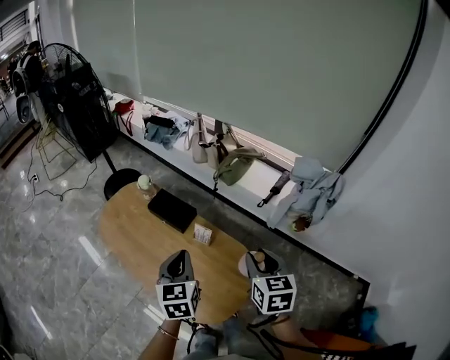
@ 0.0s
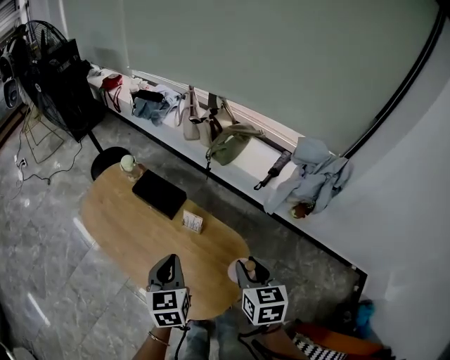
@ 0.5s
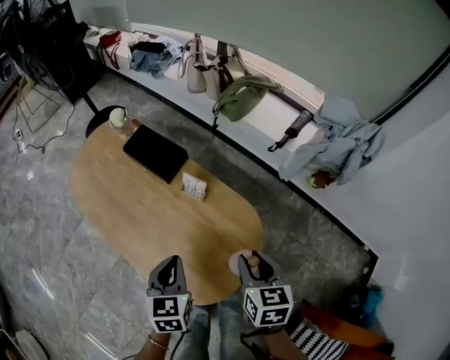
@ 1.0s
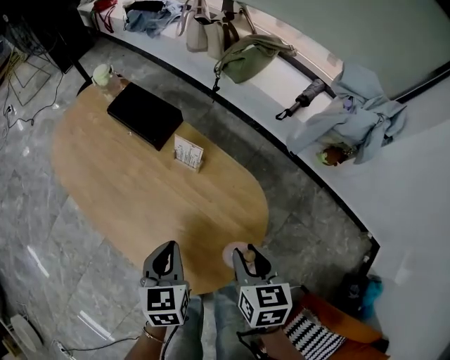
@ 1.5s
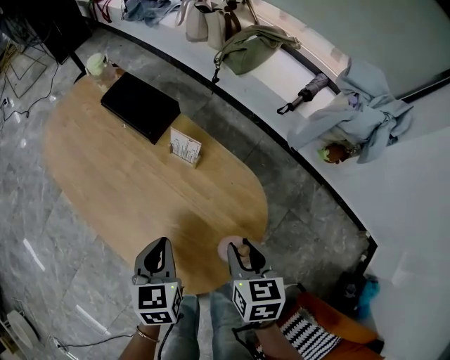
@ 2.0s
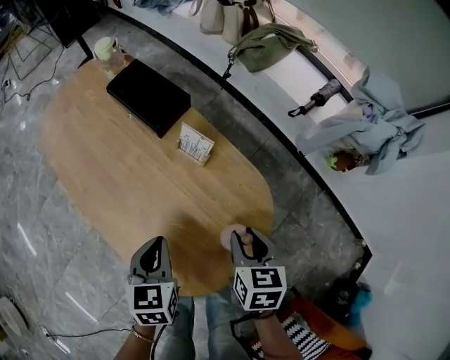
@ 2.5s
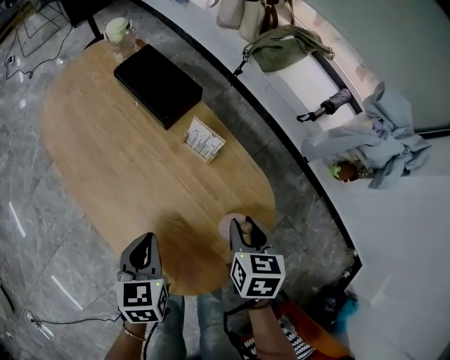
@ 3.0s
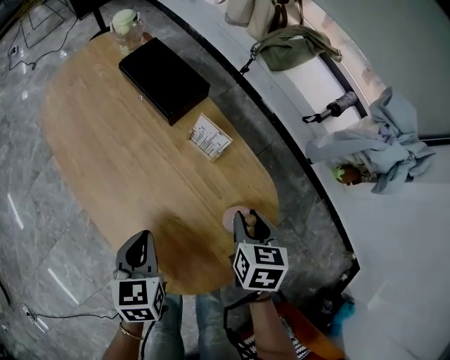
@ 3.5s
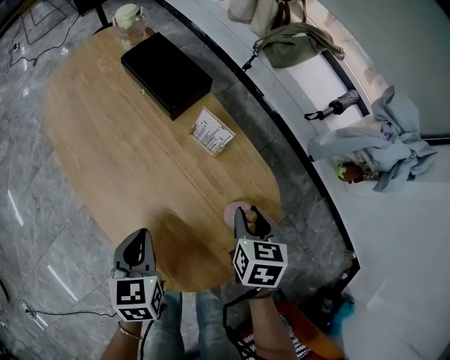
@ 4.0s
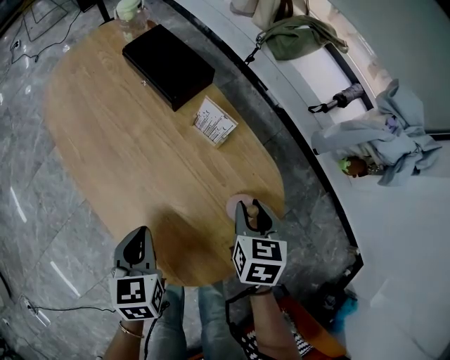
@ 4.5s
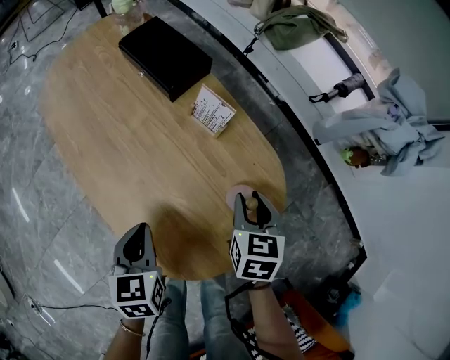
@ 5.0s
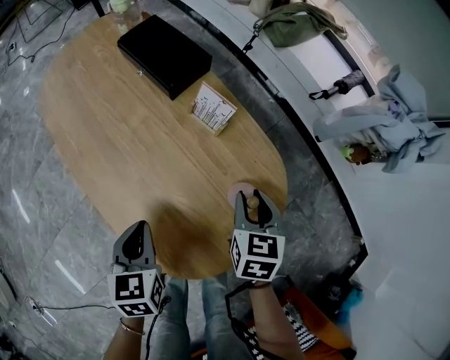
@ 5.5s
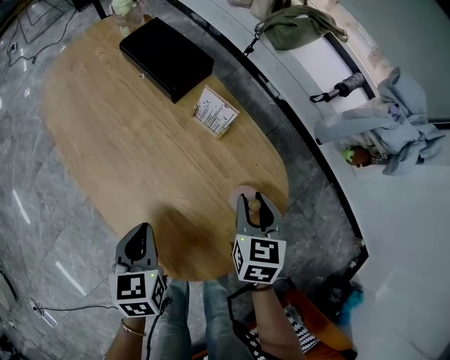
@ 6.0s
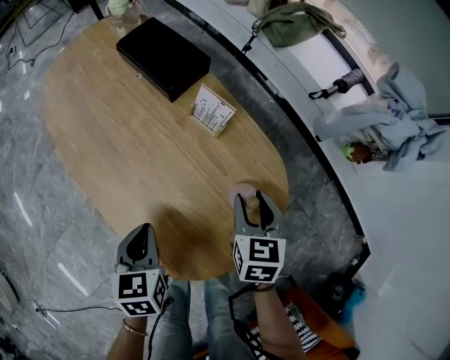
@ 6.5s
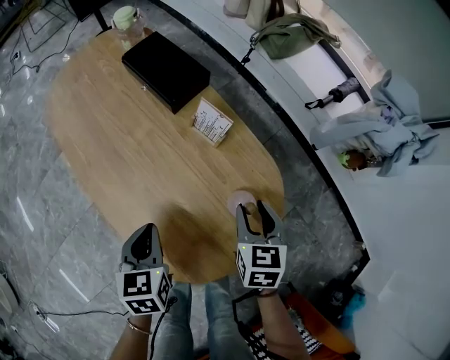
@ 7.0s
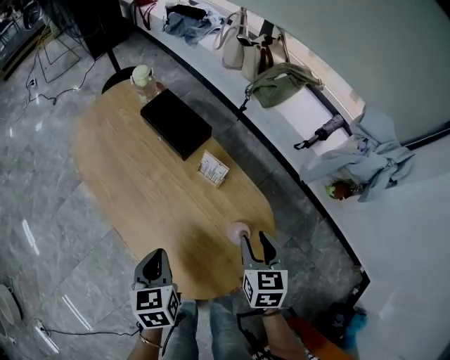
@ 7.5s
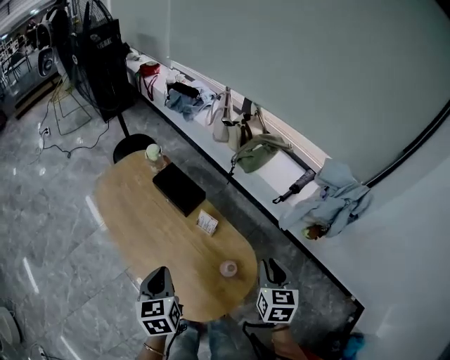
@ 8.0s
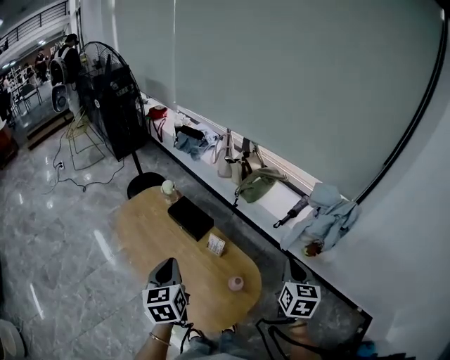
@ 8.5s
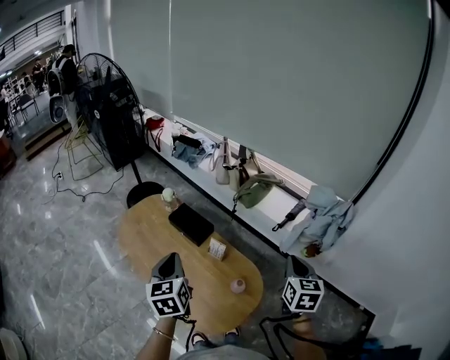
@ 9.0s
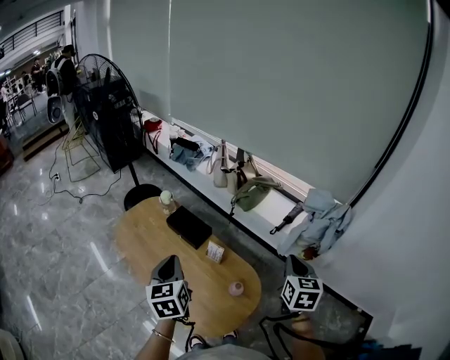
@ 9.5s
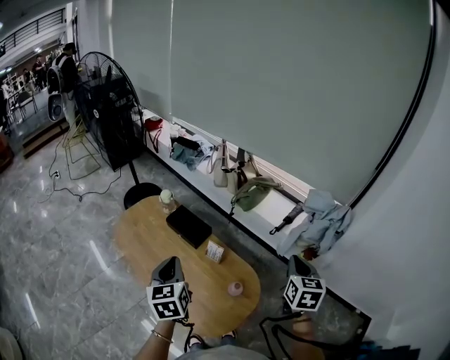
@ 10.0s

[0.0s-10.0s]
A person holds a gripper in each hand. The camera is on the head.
0.0s to 2.0s: Both grippers move downward, roughly 35 cm.
2.0s to 4.0s: The left gripper moves to the left, about 5 cm. The right gripper travels forward and downward by roughly 10 cm.
4.0s to 6.0s: The grippers stay close to where they were, moving slightly.
6.0s to 8.0s: Both grippers move upward, some 25 cm.
8.0s to 10.0s: The grippers both shift upward by roughly 15 cm.

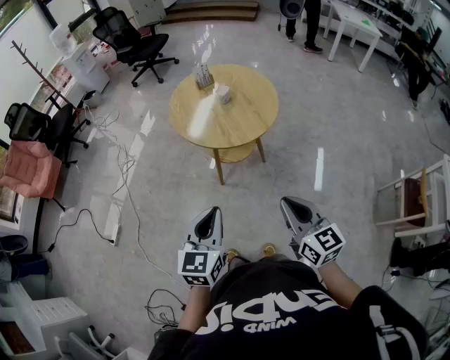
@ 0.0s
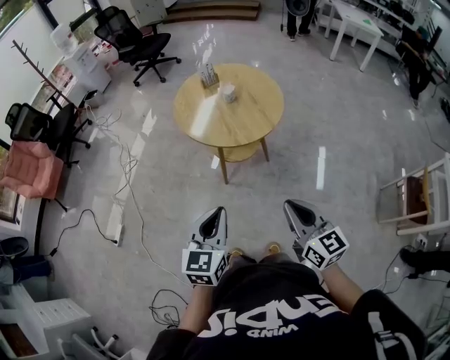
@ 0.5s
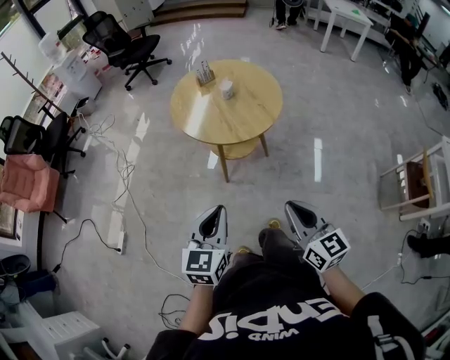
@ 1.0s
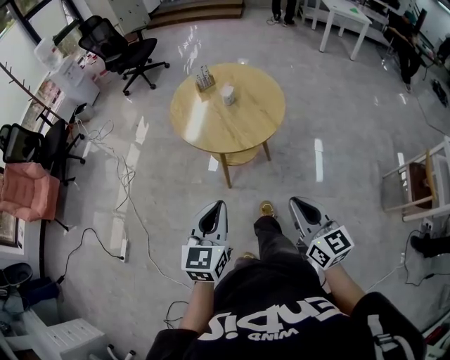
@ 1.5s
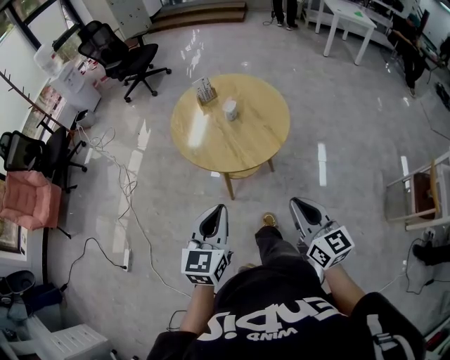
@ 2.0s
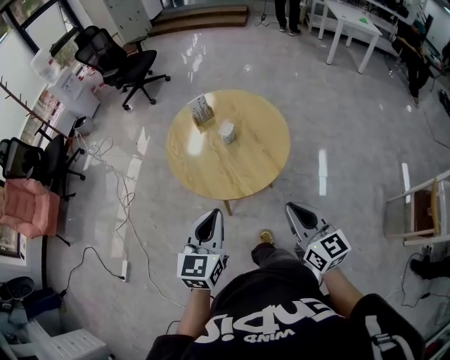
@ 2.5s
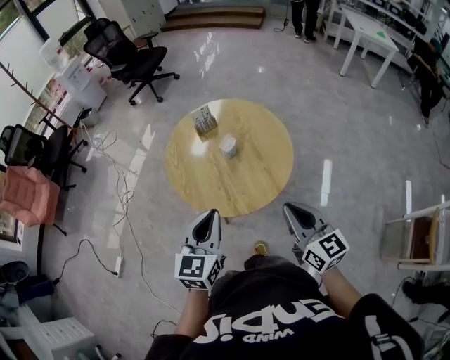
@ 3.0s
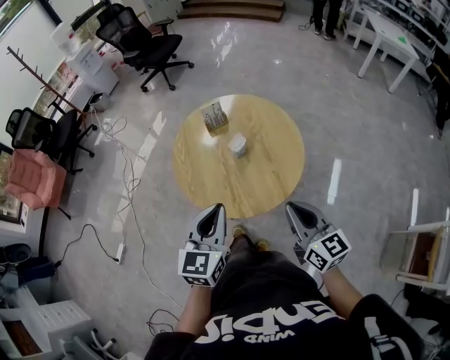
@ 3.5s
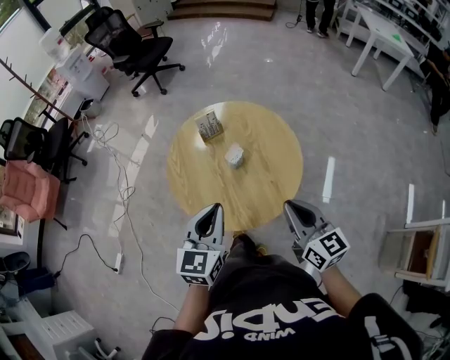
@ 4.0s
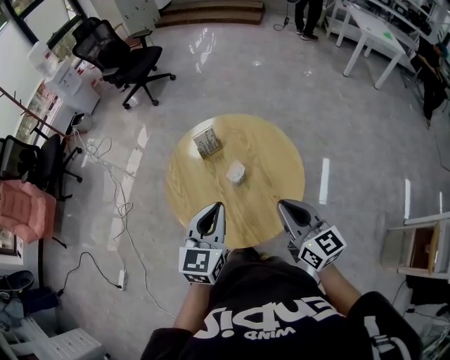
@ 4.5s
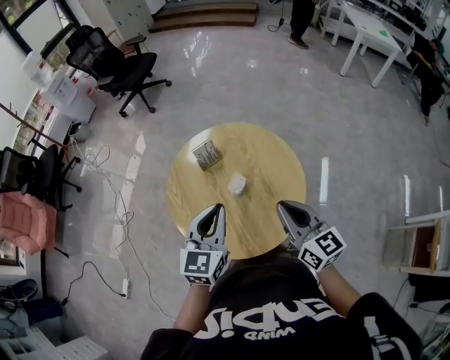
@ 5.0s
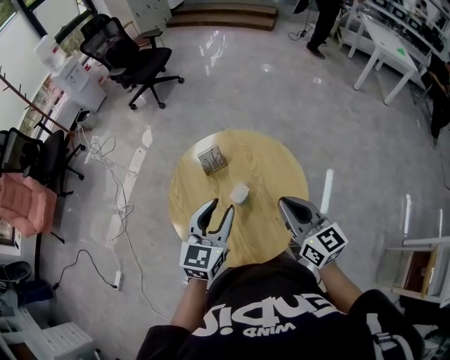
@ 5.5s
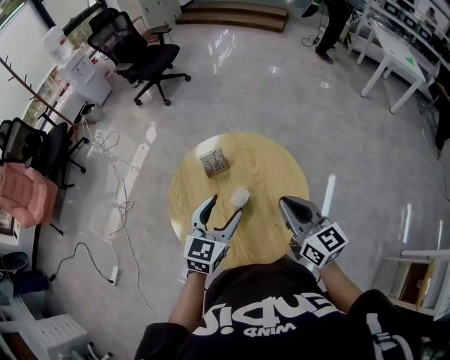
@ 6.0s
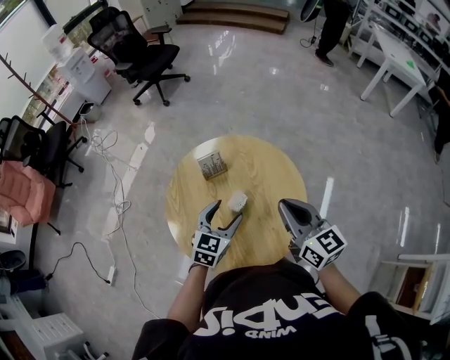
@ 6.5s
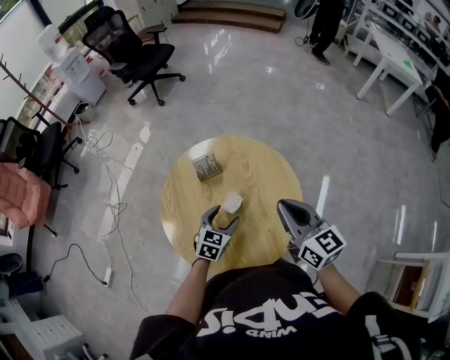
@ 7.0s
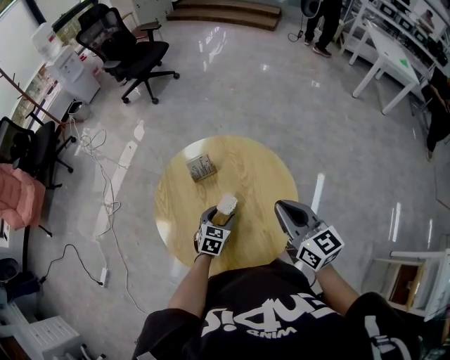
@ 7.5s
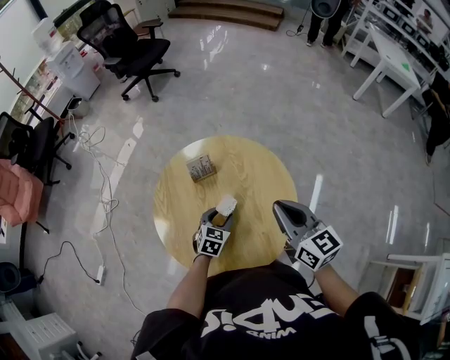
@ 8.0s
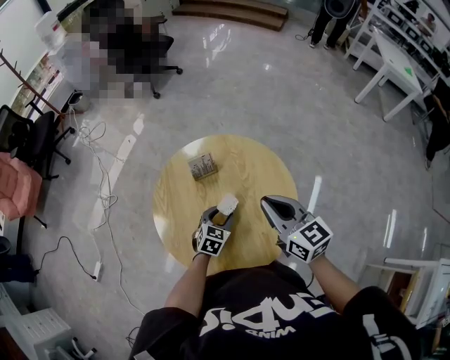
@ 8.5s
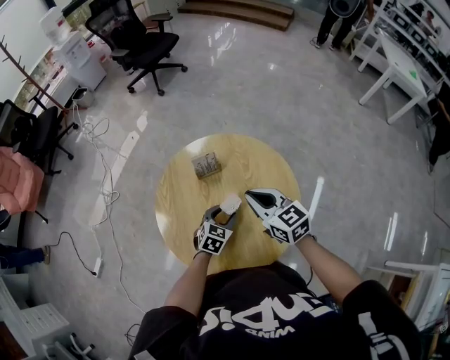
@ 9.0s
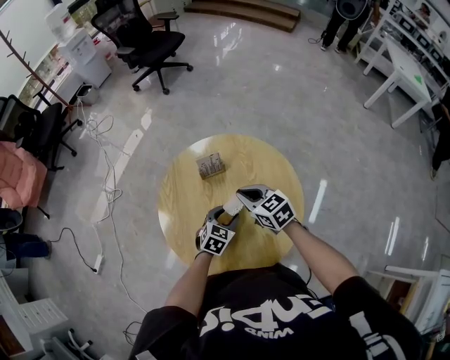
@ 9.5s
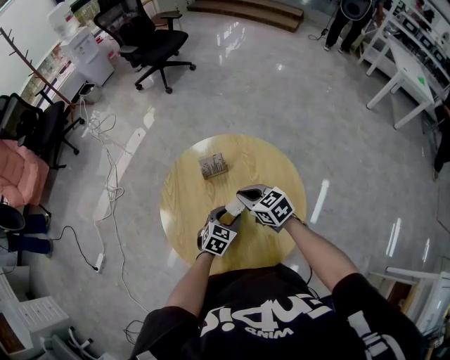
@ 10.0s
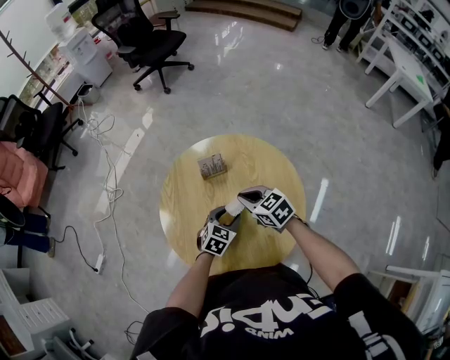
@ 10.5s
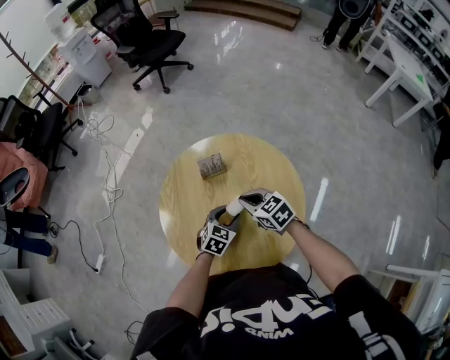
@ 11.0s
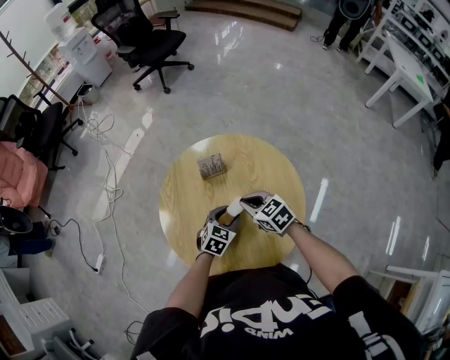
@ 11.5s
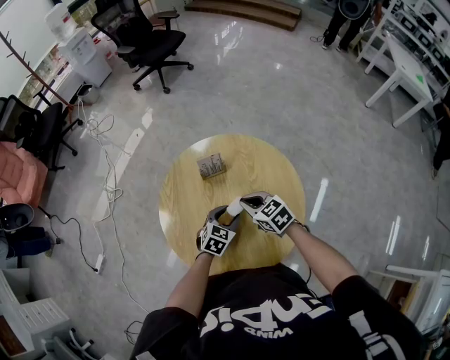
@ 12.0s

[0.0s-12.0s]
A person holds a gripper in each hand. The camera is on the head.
0.0s to 2.0s: Both grippers travel together forward, approximately 15 cm.
2.0s to 4.0s: Both grippers move forward, some 30 cm.
4.0s to 6.0s: The two grippers go roughly 20 cm forward. The left gripper opens its fingers.
6.0s to 8.0s: The left gripper travels downward by about 25 cm, and changes its angle by roughly 20 degrees.
8.0s to 10.0s: The right gripper goes about 20 cm downward, to the left and forward, and turns by about 40 degrees.
10.0s to 12.0s: There are only small adjustments of the grippers.

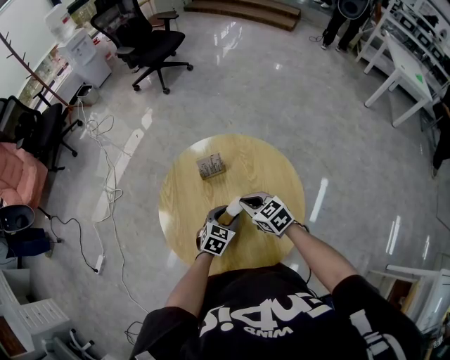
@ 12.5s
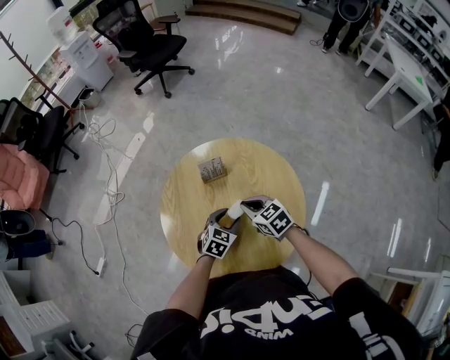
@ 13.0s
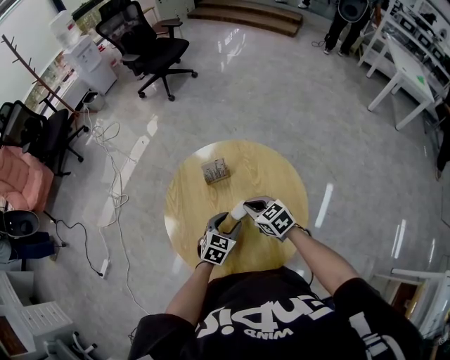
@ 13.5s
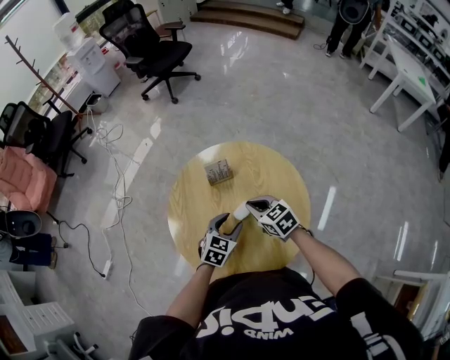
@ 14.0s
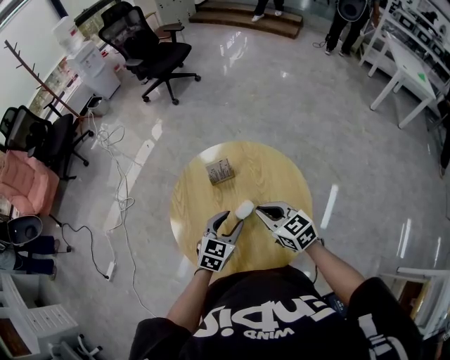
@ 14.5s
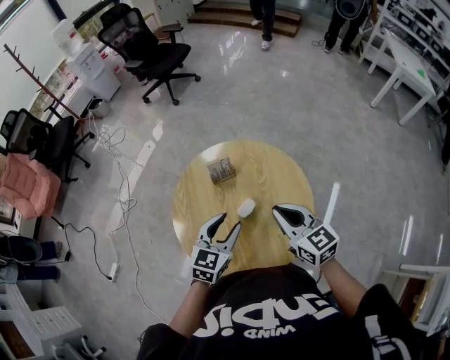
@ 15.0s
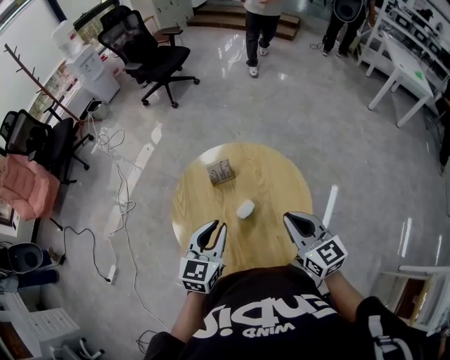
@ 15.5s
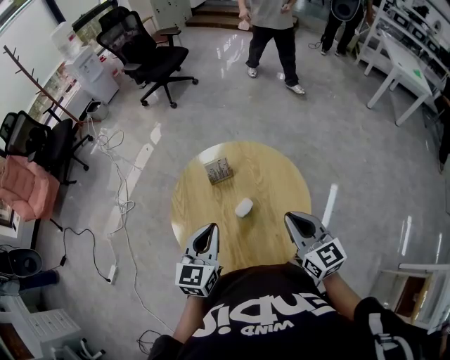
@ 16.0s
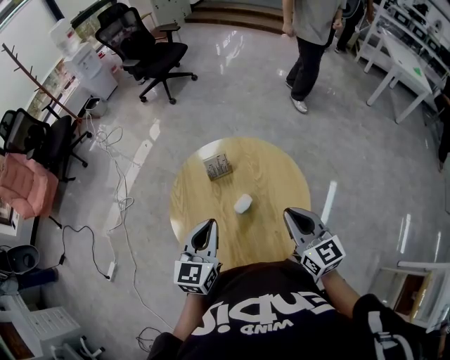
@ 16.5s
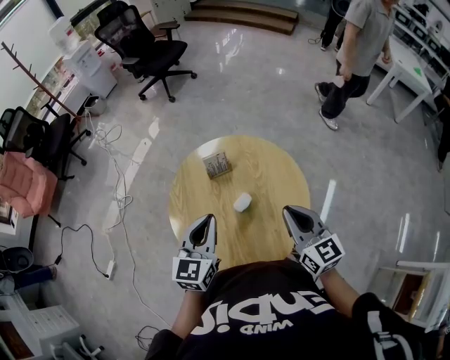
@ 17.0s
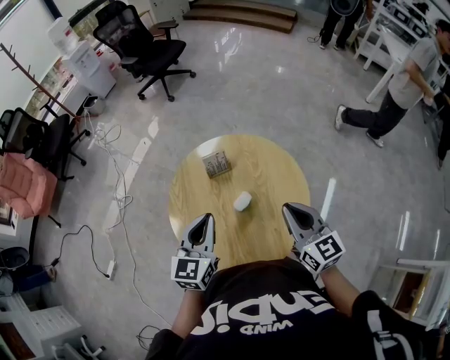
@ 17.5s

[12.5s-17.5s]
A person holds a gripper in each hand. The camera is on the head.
12.5s to 15.0s: The grippers both shift upward by some 15 cm. The right gripper turns by approximately 30 degrees.
15.0s to 17.5s: The right gripper moves roughly 5 cm. Meanwhile the left gripper moves upward, approximately 5 cm, and closes.
